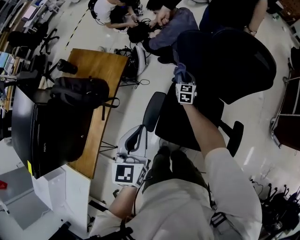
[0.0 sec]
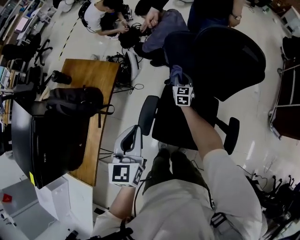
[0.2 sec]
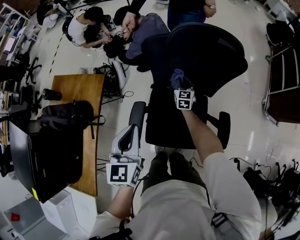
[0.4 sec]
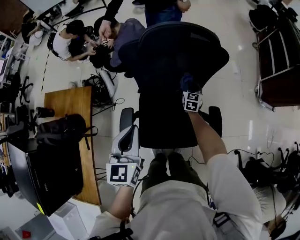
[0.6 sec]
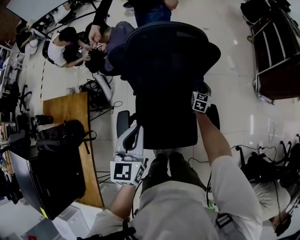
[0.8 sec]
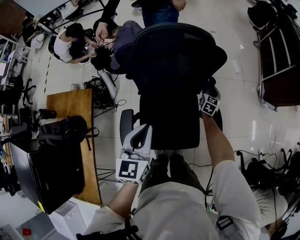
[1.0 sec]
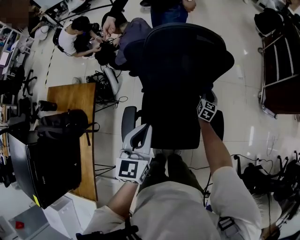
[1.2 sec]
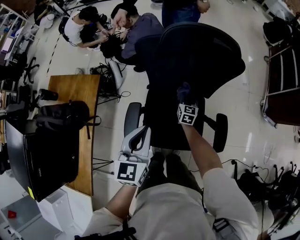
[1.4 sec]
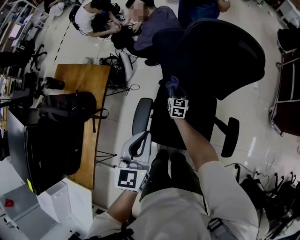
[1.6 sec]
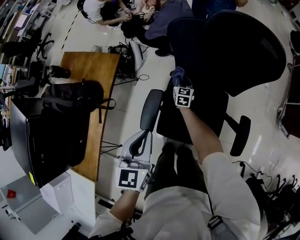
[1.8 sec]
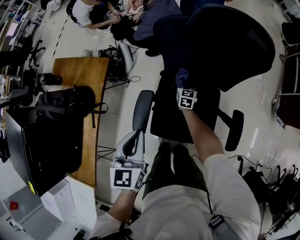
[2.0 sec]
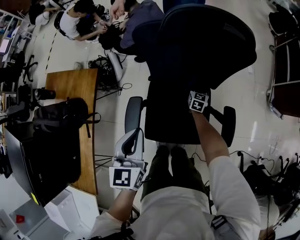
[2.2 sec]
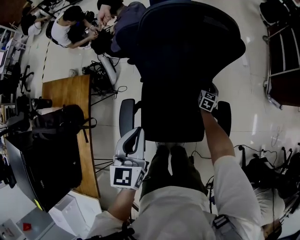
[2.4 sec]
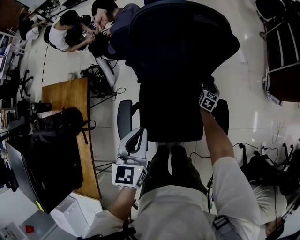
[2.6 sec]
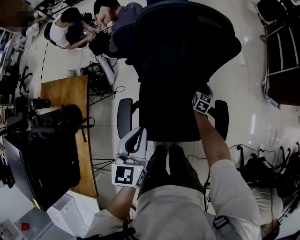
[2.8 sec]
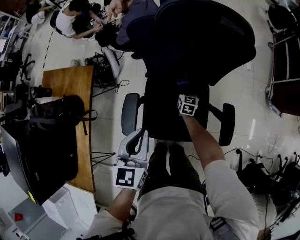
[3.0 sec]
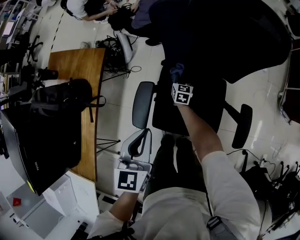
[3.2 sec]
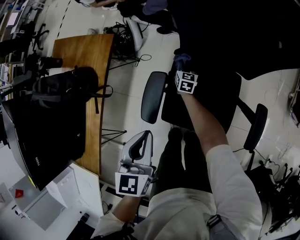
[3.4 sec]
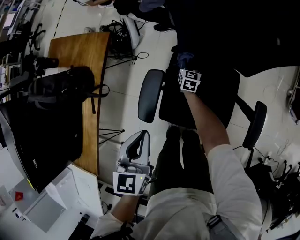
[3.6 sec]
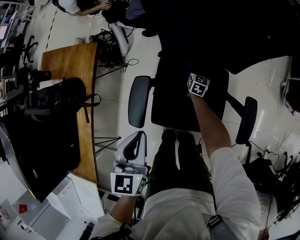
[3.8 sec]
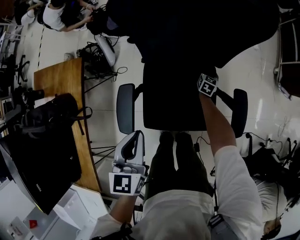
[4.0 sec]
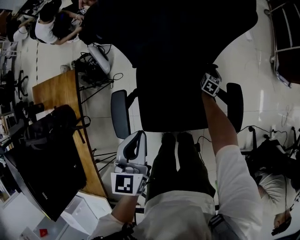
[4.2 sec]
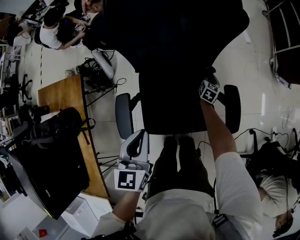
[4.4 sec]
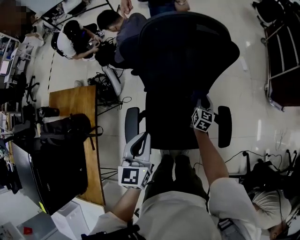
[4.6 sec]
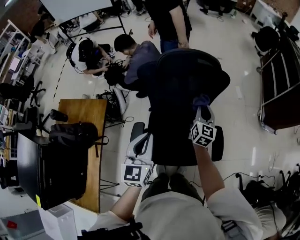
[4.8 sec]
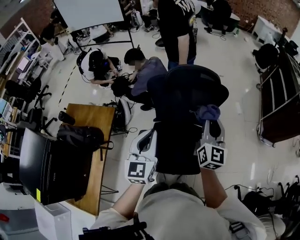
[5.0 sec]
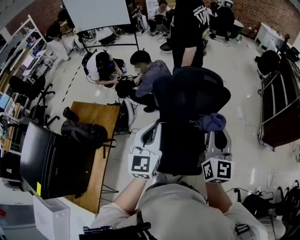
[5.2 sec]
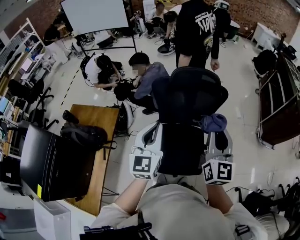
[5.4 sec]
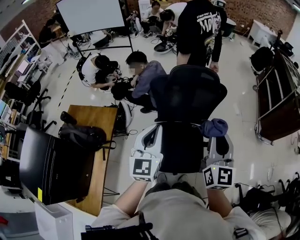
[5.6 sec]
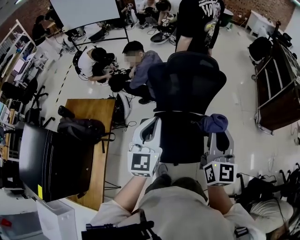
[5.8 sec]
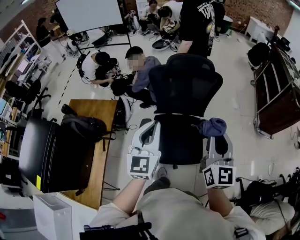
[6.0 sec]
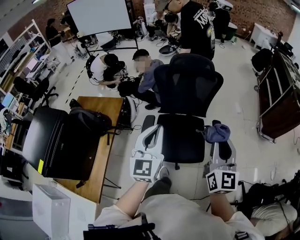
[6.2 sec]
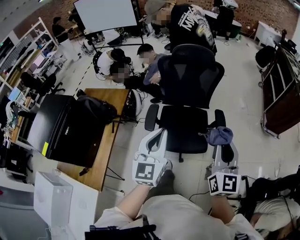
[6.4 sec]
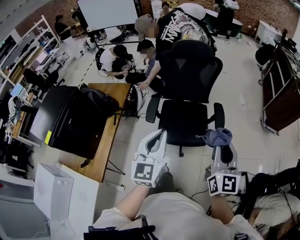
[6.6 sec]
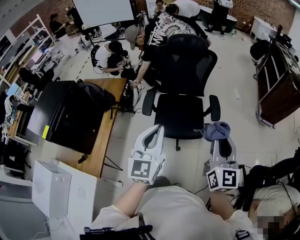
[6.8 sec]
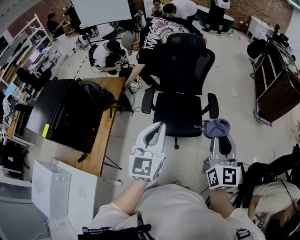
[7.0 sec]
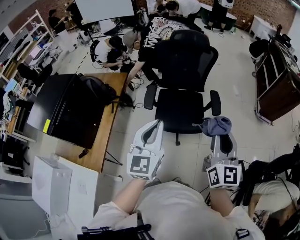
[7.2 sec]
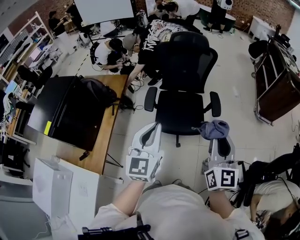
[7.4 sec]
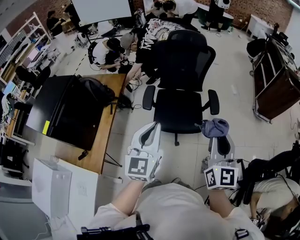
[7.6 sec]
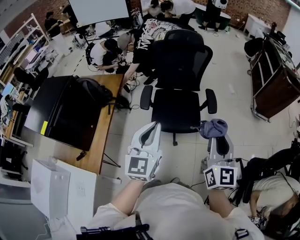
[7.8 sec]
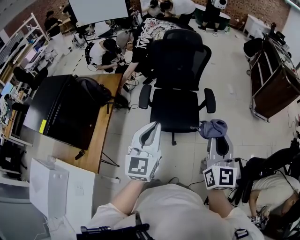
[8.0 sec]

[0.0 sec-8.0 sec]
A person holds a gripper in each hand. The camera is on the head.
1.6 sec to 3.2 sec: The left gripper swings left and right, roughly 15 cm each way, with 2 reversals, while the right gripper heads downward, covering roughly 10 cm, and travels to the right and back again, approximately 35 cm each way.
3.2 sec to 4.8 sec: The left gripper changes place by some 15 cm. Meanwhile the right gripper heads upward, covering roughly 35 cm, and rotates about 30 degrees.
4.8 sec to 6.4 sec: The two grippers go roughly 50 cm backward. The right gripper turns by approximately 20 degrees.
6.4 sec to 8.0 sec: The grippers both shift backward by about 15 cm.

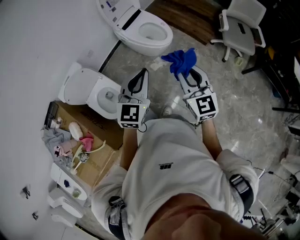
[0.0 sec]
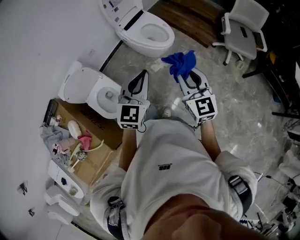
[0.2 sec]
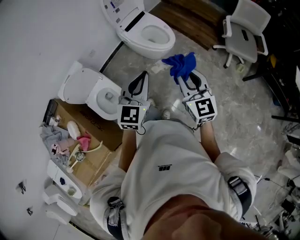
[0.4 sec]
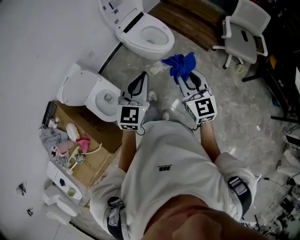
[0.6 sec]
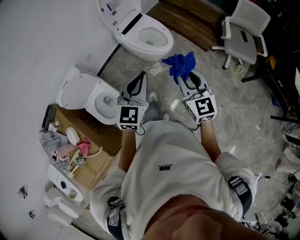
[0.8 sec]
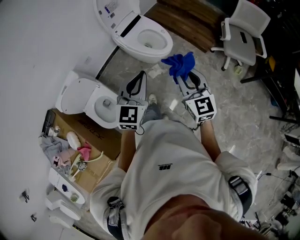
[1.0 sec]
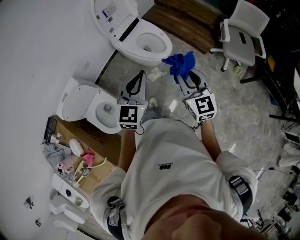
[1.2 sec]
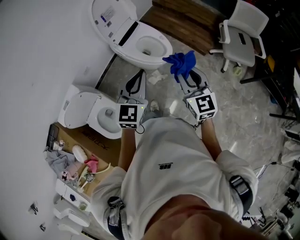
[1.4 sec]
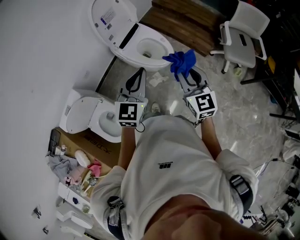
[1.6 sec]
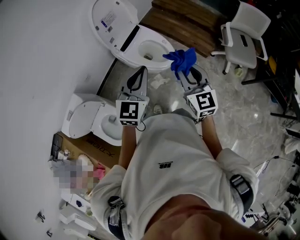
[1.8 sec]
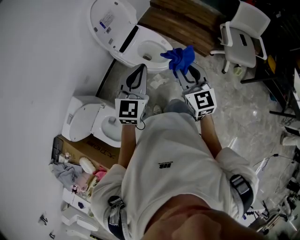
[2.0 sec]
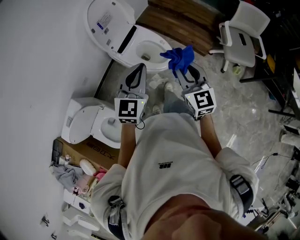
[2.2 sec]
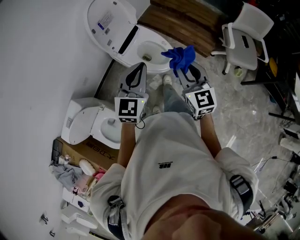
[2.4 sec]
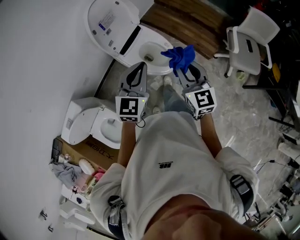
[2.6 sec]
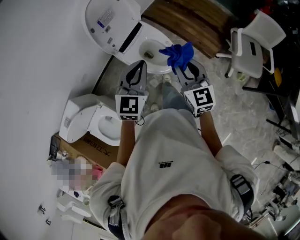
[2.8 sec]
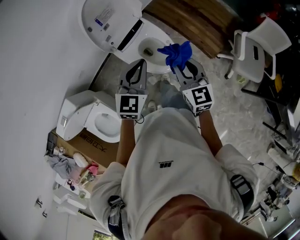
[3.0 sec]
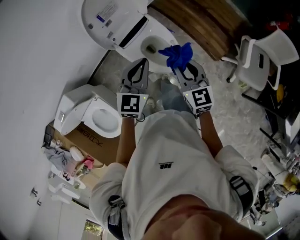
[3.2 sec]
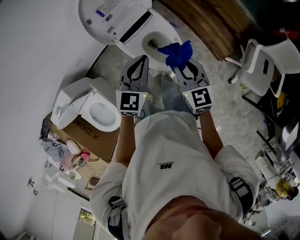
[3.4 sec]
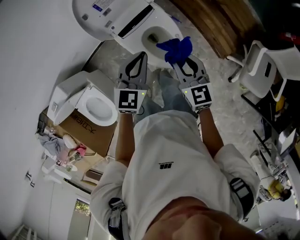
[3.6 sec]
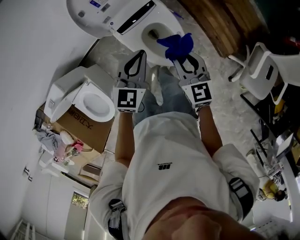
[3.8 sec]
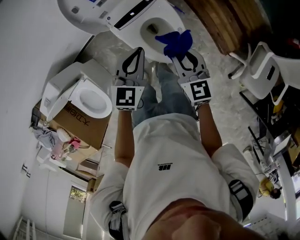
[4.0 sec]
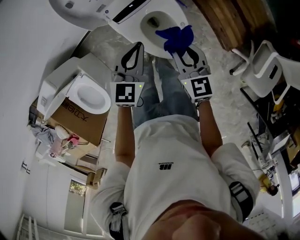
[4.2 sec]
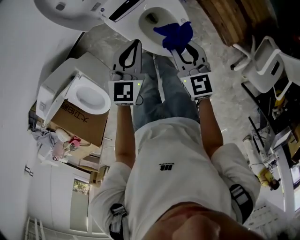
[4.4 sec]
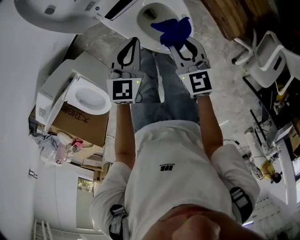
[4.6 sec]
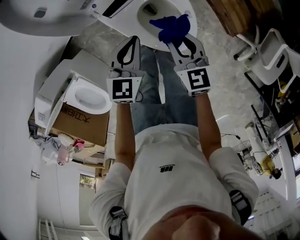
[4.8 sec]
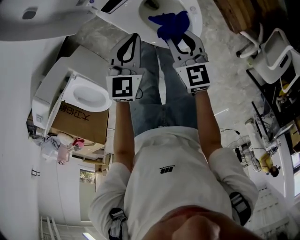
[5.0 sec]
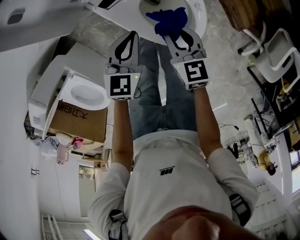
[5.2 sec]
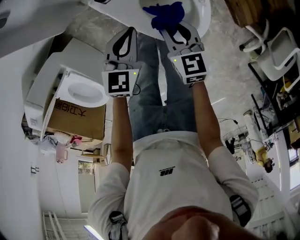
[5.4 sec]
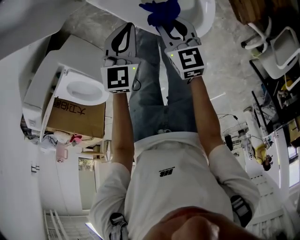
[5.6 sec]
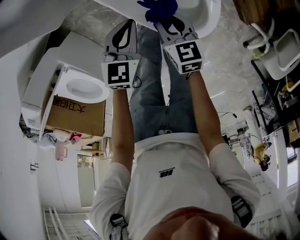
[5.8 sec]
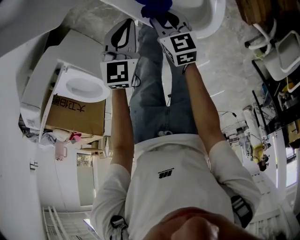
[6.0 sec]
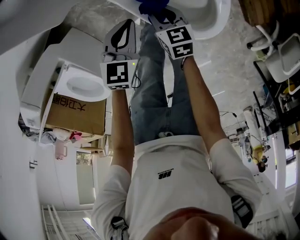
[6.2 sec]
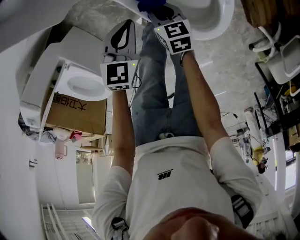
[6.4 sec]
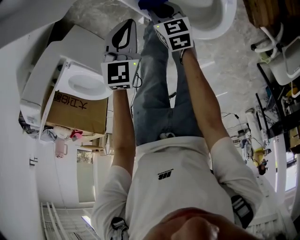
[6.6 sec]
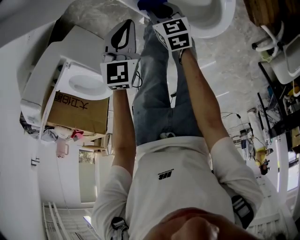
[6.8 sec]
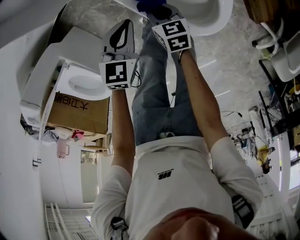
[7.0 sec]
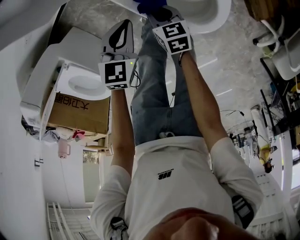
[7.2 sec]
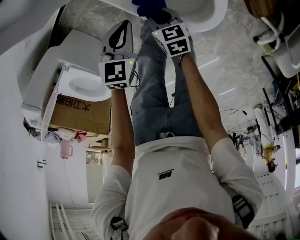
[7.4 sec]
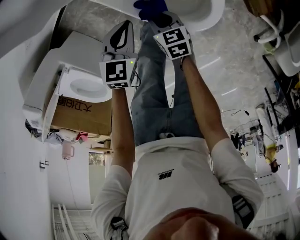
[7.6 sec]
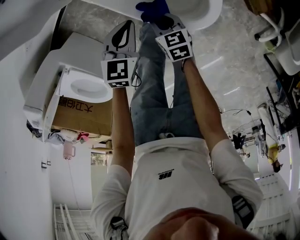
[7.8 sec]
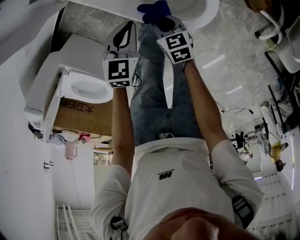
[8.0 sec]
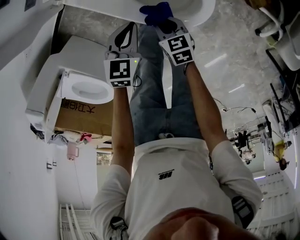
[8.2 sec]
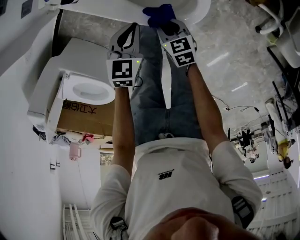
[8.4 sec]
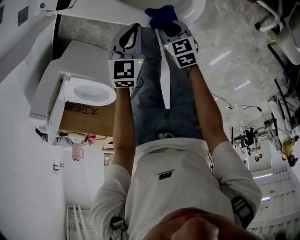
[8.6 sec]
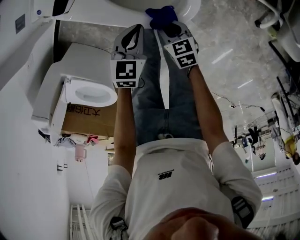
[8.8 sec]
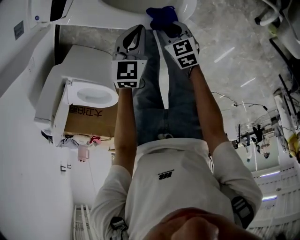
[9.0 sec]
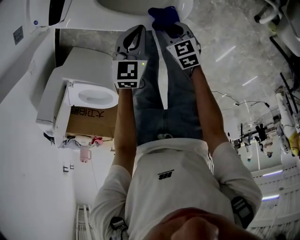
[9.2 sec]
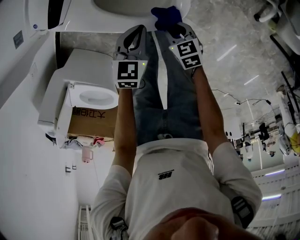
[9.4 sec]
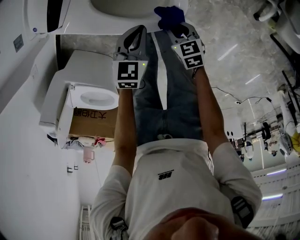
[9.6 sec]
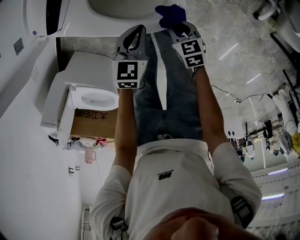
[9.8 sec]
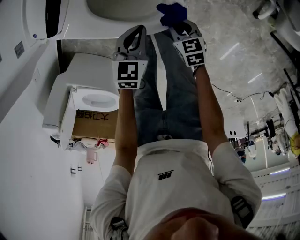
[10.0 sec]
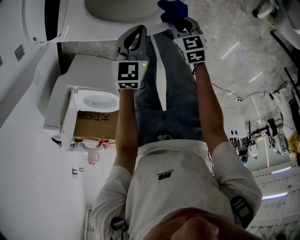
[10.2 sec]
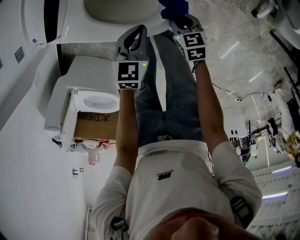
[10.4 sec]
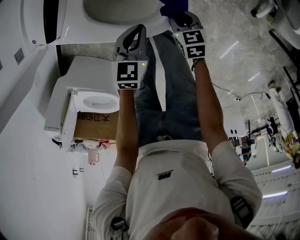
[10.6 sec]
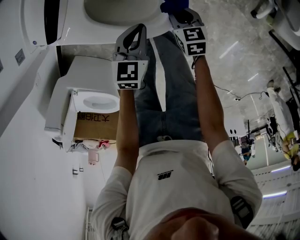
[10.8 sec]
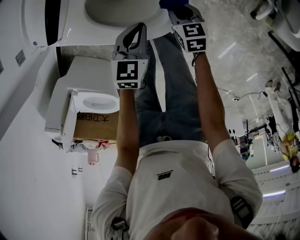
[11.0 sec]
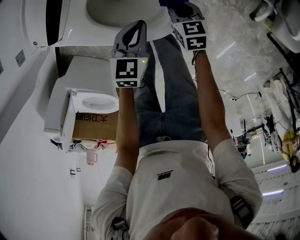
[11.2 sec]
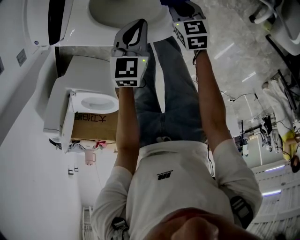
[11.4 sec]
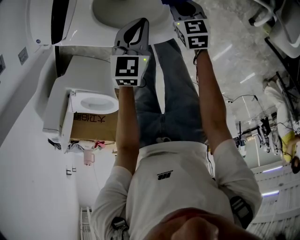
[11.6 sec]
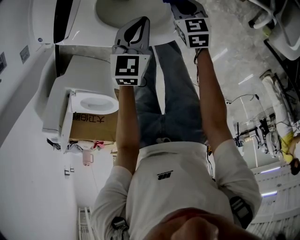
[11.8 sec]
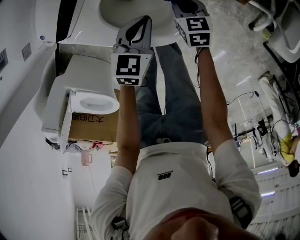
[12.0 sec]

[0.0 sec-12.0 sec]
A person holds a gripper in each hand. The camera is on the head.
0.0 sec to 1.6 sec: Both grippers move forward, about 25 cm.
1.6 sec to 3.0 sec: The two grippers go about 25 cm forward.
3.0 sec to 4.4 sec: Both grippers move downward and forward, some 25 cm. The left gripper rotates some 20 degrees.
4.4 sec to 6.0 sec: Both grippers move downward, approximately 30 cm. The right gripper rotates approximately 20 degrees.
6.0 sec to 7.6 sec: The left gripper changes place by roughly 5 cm, while the right gripper moves backward and downward, some 10 cm.
7.6 sec to 9.0 sec: The left gripper travels to the right by approximately 15 cm. Meanwhile the right gripper heads to the right and backward, covering some 15 cm.
9.0 sec to 10.4 sec: The right gripper shifts some 10 cm to the right and forward; the left gripper travels to the right by about 5 cm.
10.4 sec to 12.0 sec: The left gripper shifts some 10 cm forward. Meanwhile the right gripper travels forward by roughly 15 cm.

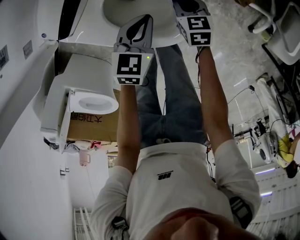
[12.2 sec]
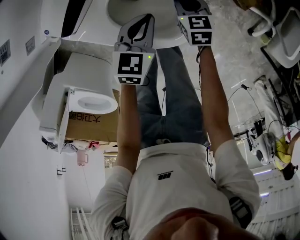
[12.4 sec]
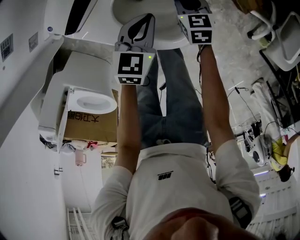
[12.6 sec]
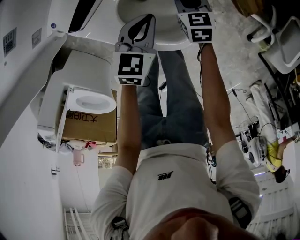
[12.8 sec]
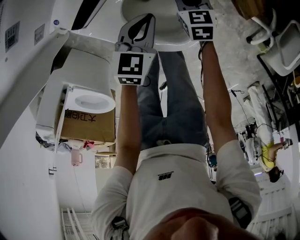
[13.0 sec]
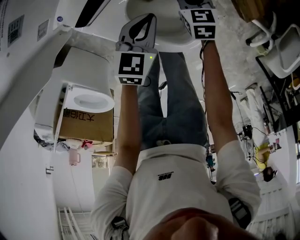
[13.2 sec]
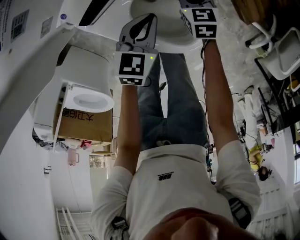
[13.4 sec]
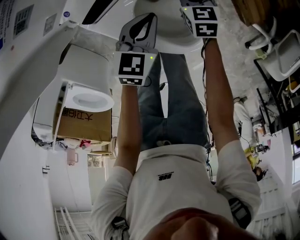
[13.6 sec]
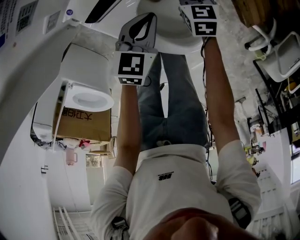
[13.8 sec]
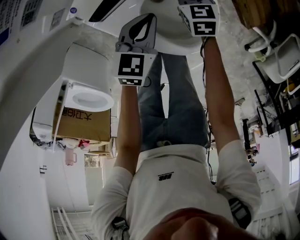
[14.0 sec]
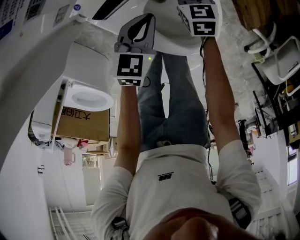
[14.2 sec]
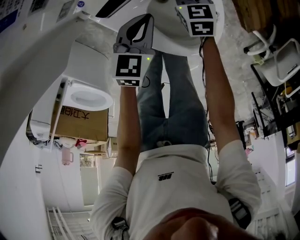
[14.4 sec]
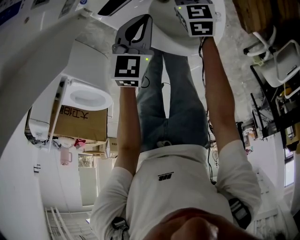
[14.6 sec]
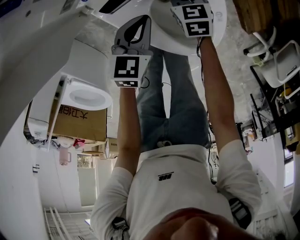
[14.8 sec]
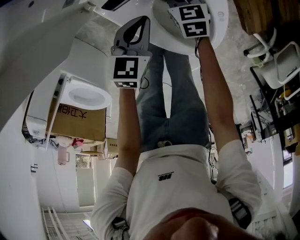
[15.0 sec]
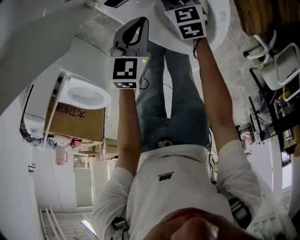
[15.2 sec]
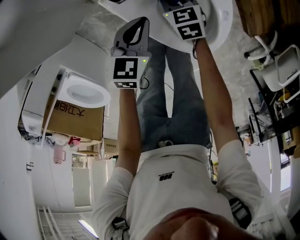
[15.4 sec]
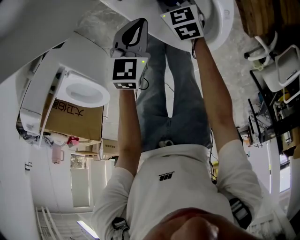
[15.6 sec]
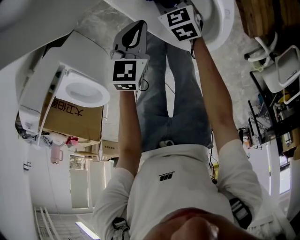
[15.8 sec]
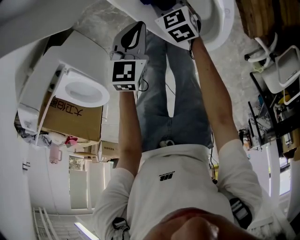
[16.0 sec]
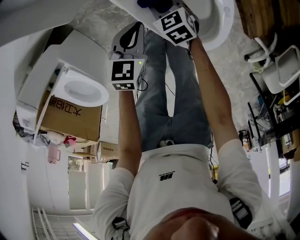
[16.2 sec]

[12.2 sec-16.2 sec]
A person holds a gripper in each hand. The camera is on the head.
12.2 sec to 13.6 sec: The left gripper goes about 10 cm to the left; the right gripper shifts roughly 15 cm to the left and forward.
13.6 sec to 14.8 sec: The grippers both shift to the left by approximately 10 cm.
14.8 sec to 16.2 sec: The right gripper travels to the left and backward by roughly 15 cm, and swivels some 20 degrees. Meanwhile the left gripper goes approximately 10 cm backward and to the left.
